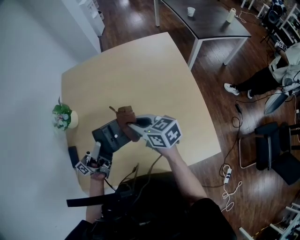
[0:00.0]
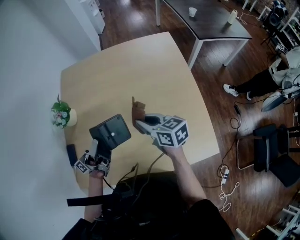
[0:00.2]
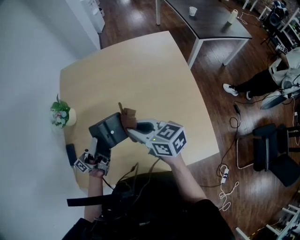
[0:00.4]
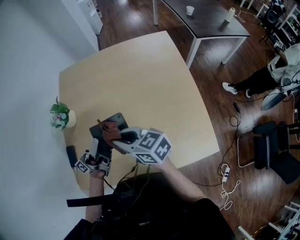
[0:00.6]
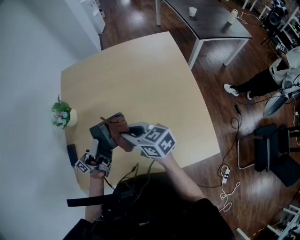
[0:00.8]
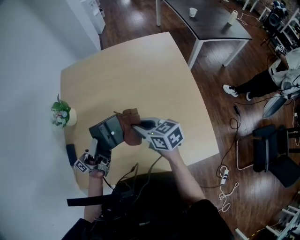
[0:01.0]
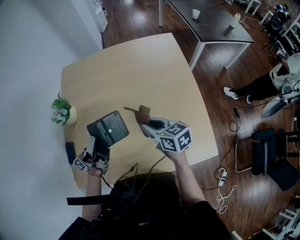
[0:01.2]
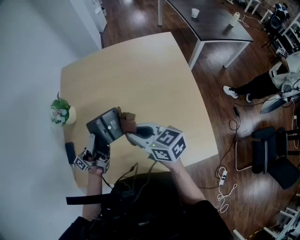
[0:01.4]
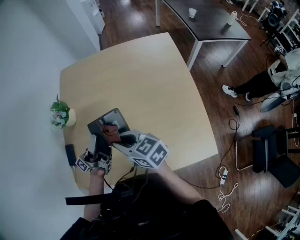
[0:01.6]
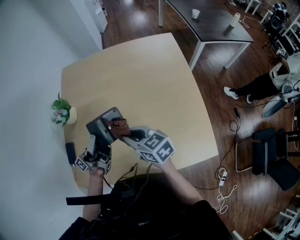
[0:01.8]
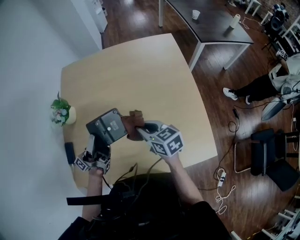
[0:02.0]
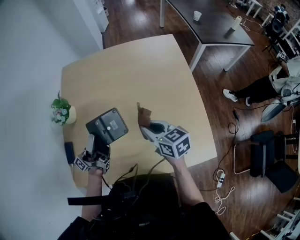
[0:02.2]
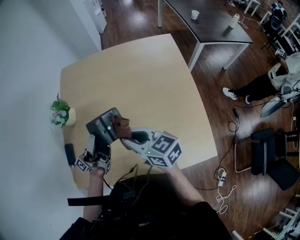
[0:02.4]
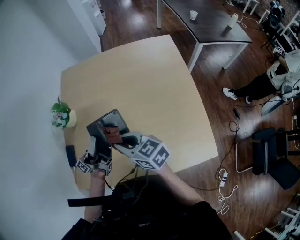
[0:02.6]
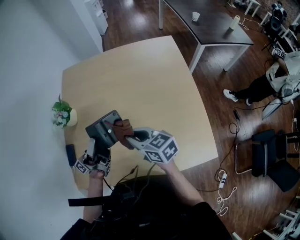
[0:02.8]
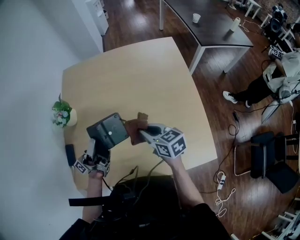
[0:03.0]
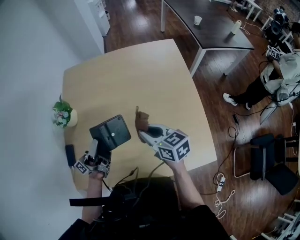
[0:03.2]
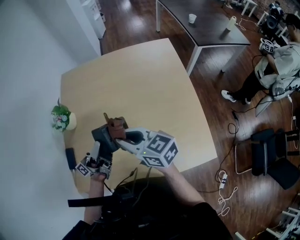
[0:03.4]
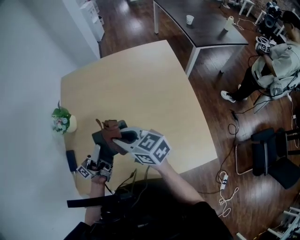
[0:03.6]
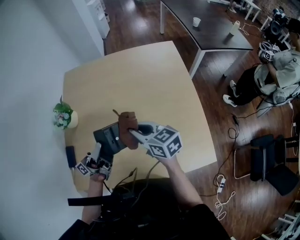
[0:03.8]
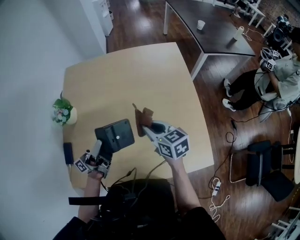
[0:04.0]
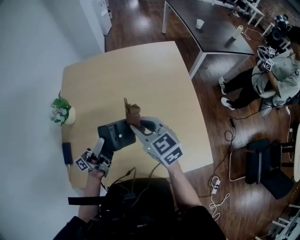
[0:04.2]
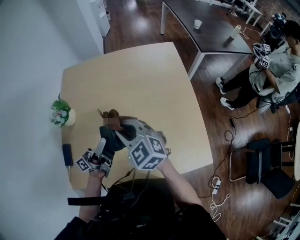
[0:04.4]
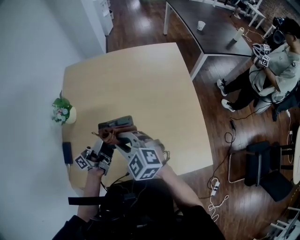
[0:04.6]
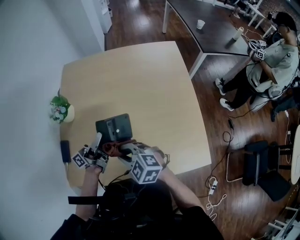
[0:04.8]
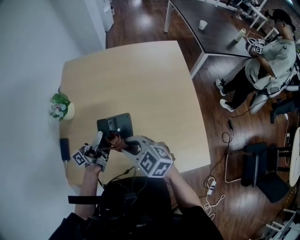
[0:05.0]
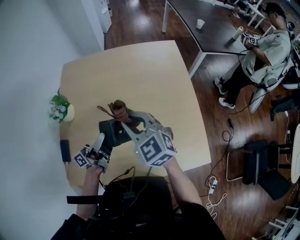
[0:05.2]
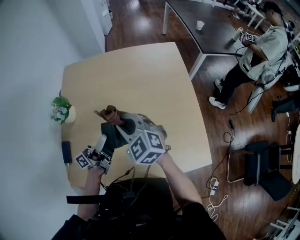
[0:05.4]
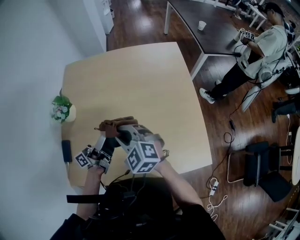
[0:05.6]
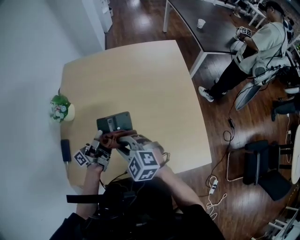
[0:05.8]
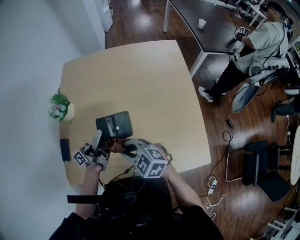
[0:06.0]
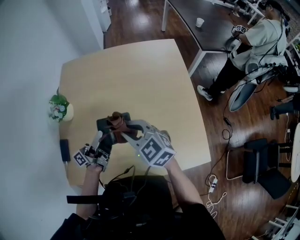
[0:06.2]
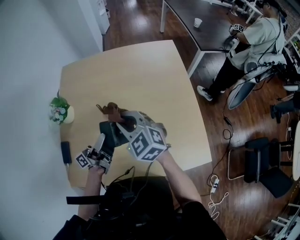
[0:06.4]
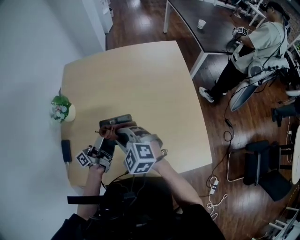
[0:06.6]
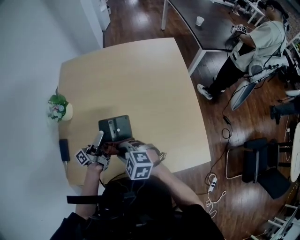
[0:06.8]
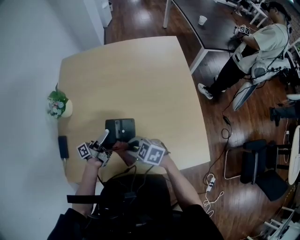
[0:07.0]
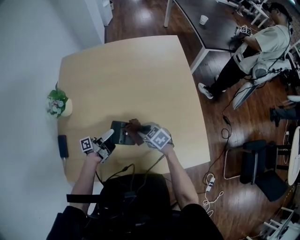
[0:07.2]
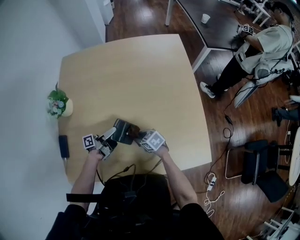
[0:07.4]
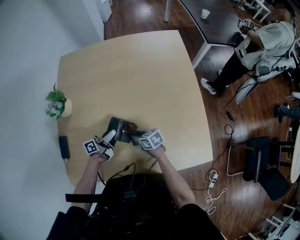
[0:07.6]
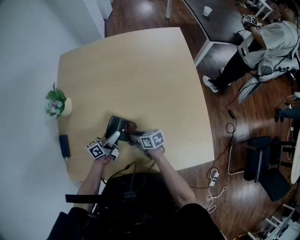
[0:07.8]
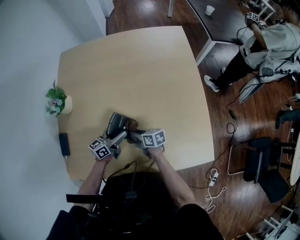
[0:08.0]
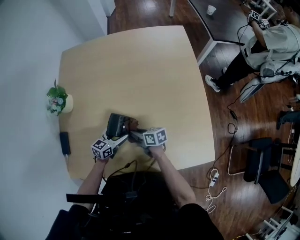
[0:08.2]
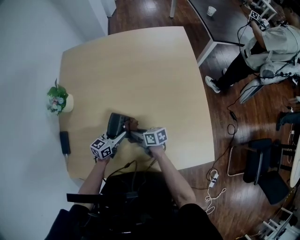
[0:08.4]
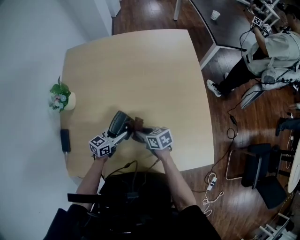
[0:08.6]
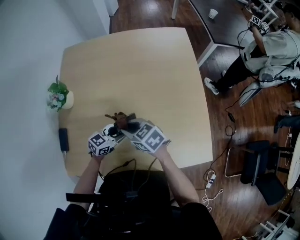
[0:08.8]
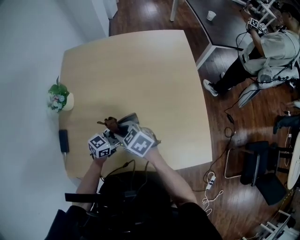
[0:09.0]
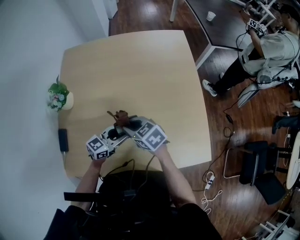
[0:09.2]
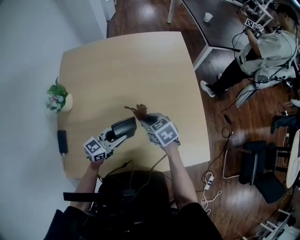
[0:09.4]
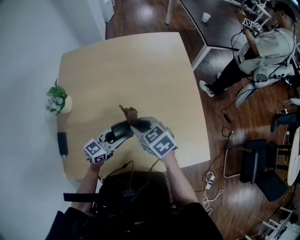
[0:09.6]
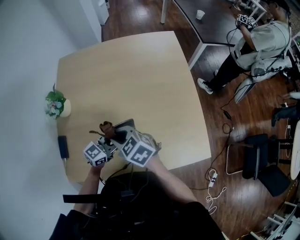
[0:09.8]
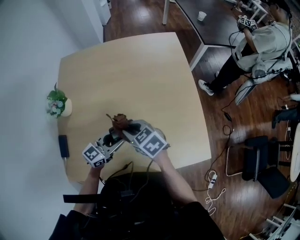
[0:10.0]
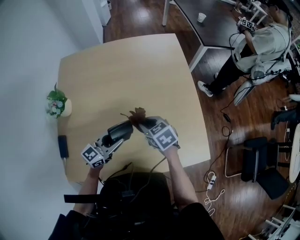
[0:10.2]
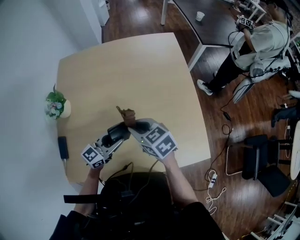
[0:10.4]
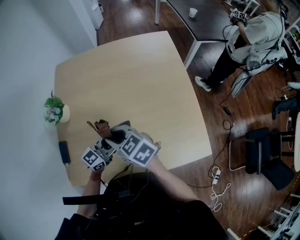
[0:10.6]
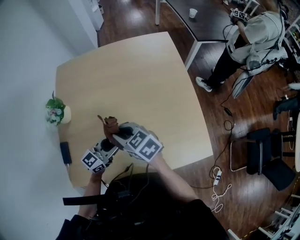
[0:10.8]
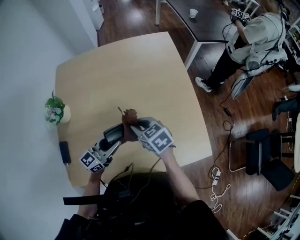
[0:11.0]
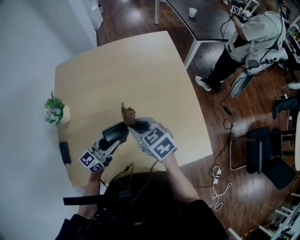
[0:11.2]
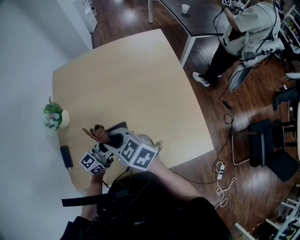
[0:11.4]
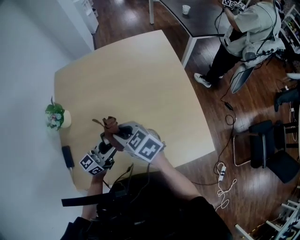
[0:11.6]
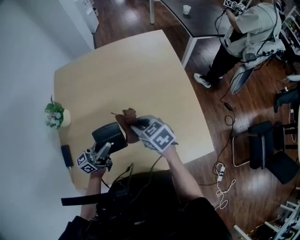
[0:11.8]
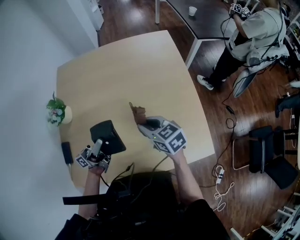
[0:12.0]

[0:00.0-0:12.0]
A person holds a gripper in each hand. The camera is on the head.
0:00.0 to 0:01.6: The right gripper goes left and right, about 10 cm each way, reversing 2 times.
0:01.6 to 0:03.0: The right gripper goes left and right, roughly 10 cm each way, reversing 2 times.
0:03.0 to 0:04.4: The right gripper goes left and right, approximately 10 cm each way, reversing 2 times, and rotates around the line of its fingers by some 40 degrees, counterclockwise from behind, while the left gripper changes place by approximately 5 cm.
0:04.4 to 0:06.0: The right gripper goes forward and backward, about 10 cm each way, reversing 2 times, and swivels about 20 degrees.
0:06.0 to 0:07.6: Both grippers move downward, some 20 cm. The right gripper rotates around the line of its fingers by about 50 degrees, clockwise from behind; the left gripper changes its angle by about 30 degrees, and opens.
0:07.6 to 0:09.0: The left gripper moves roughly 5 cm downward and comes back, rolls clockwise, seen from behind, by approximately 50 degrees, and closes up, while the right gripper goes approximately 20 cm upward, and turns by about 30 degrees.
0:09.0 to 0:10.4: The right gripper swings up and down, about 10 cm each way, with 2 reversals, while the left gripper shifts about 5 cm upward.
0:10.4 to 0:12.0: The right gripper goes left and right, about 15 cm each way, reversing 3 times. Meanwhile the left gripper is displaced upward and to the left by roughly 10 cm, and angles its fingers upward, by some 40 degrees.

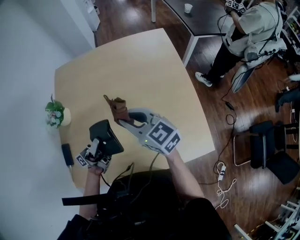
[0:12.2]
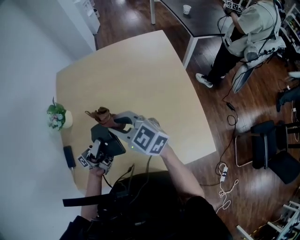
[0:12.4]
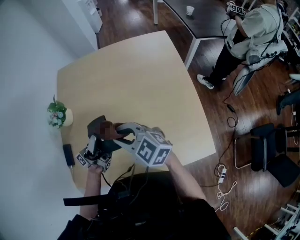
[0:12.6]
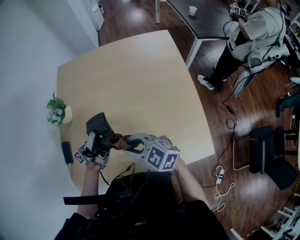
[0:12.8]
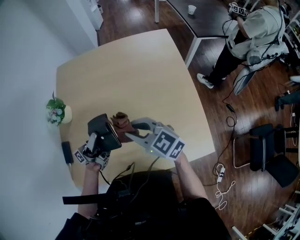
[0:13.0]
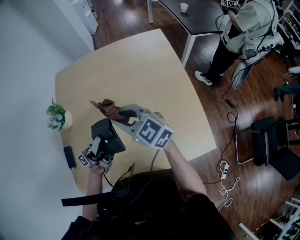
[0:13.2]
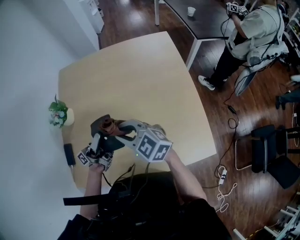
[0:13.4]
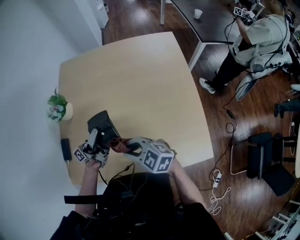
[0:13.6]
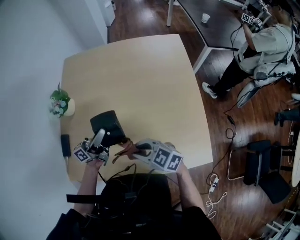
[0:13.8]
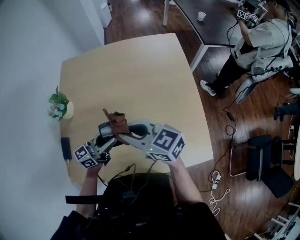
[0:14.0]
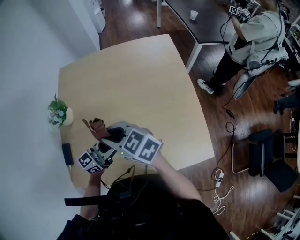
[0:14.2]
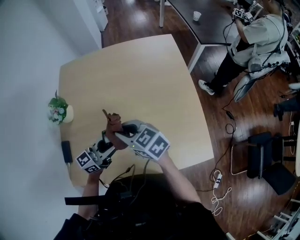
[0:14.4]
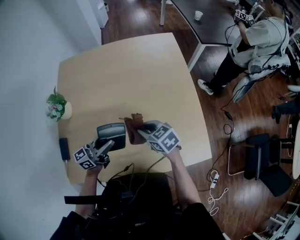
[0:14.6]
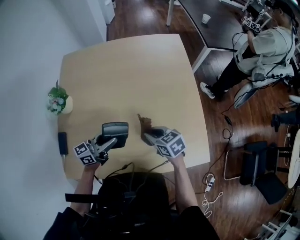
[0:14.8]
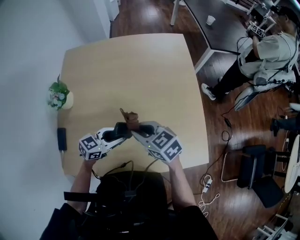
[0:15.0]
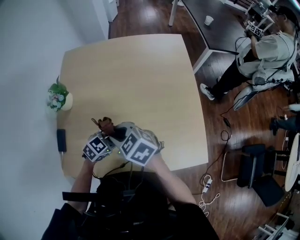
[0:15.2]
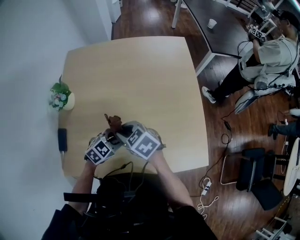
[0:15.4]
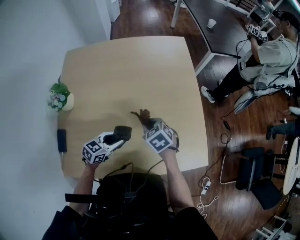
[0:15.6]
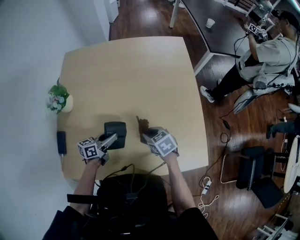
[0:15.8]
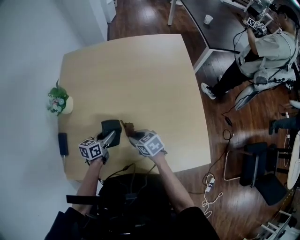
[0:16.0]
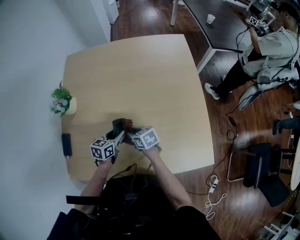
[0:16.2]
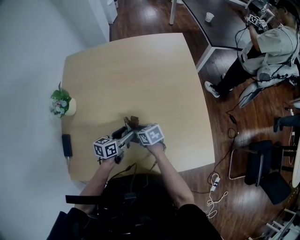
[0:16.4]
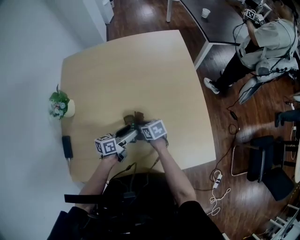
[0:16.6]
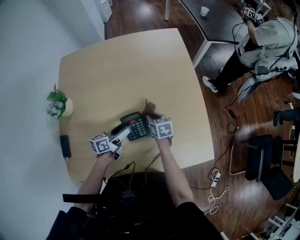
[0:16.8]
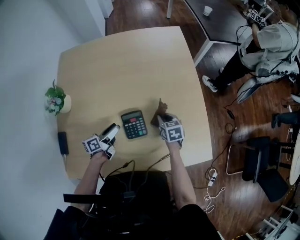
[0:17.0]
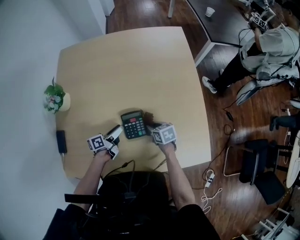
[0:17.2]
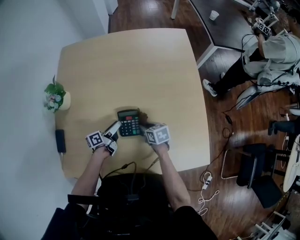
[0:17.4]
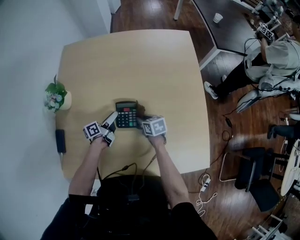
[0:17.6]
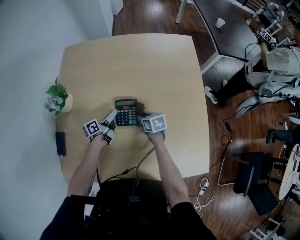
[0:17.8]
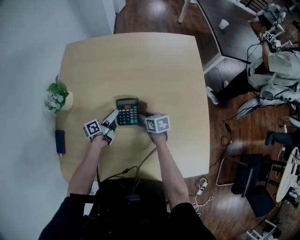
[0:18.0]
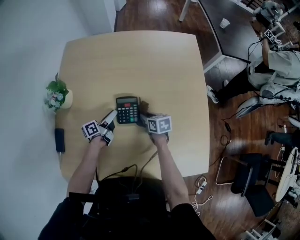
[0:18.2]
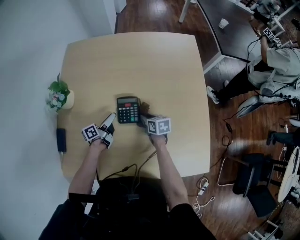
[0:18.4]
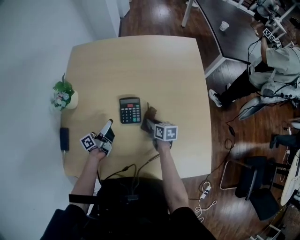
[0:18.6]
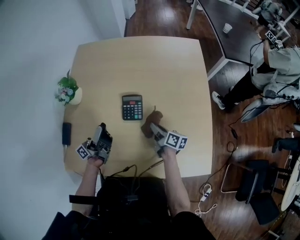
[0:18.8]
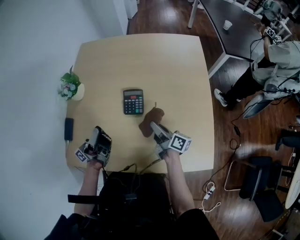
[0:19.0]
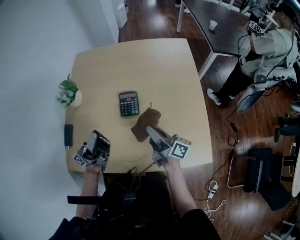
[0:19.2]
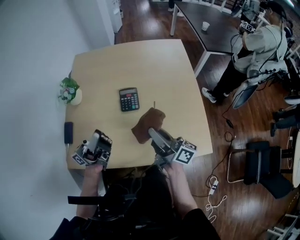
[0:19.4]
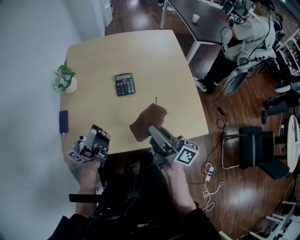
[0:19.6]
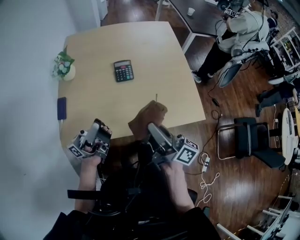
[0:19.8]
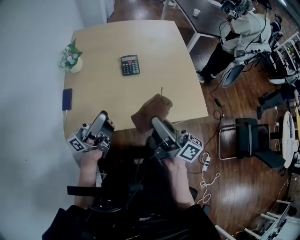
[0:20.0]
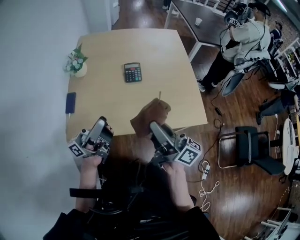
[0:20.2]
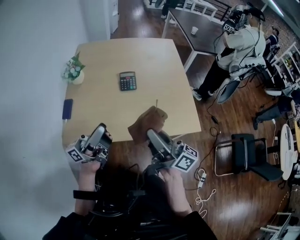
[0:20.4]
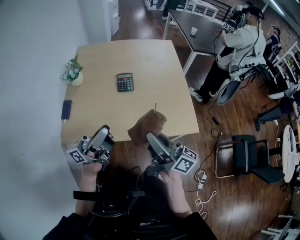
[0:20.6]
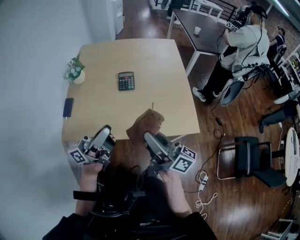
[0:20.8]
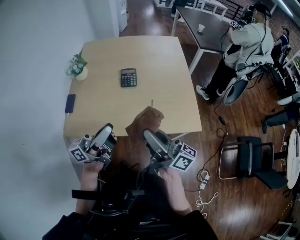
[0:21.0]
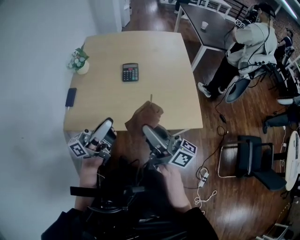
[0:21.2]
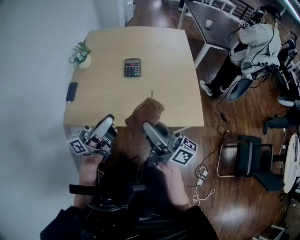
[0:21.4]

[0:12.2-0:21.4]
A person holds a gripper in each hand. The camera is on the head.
0:12.2 to 0:13.8: The left gripper rotates approximately 20 degrees. The right gripper goes forward and backward, approximately 15 cm each way, reversing 2 times, and swivels about 30 degrees.
0:13.8 to 0:15.2: The right gripper swings up and down, roughly 20 cm each way, with 2 reversals; the left gripper moves approximately 15 cm, and tips its fingers downward by approximately 60 degrees.
0:15.2 to 0:16.8: The right gripper travels downward by some 20 cm, and changes its angle by roughly 50 degrees. The left gripper rolls counterclockwise, seen from behind, by some 50 degrees, and opens.
0:16.8 to 0:18.4: The left gripper is displaced to the left, forward and downward by about 15 cm, and changes its angle by about 30 degrees. The right gripper heads to the left, covering about 5 cm.
0:18.4 to 0:19.8: The two grippers go approximately 50 cm backward and upward. The left gripper tilts its fingers some 60 degrees upward, and closes its fingers; the right gripper tips its fingers upward by approximately 60 degrees.
0:19.8 to 0:21.4: The right gripper moves backward, some 5 cm, while the left gripper moves to the right and backward, approximately 10 cm.

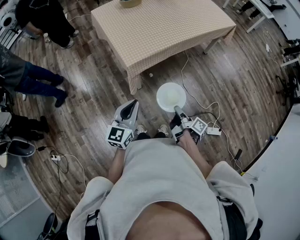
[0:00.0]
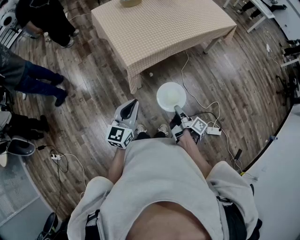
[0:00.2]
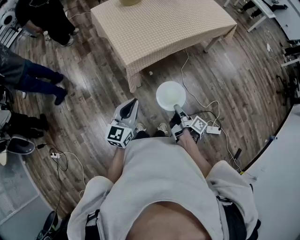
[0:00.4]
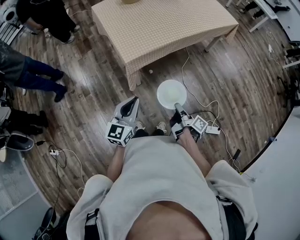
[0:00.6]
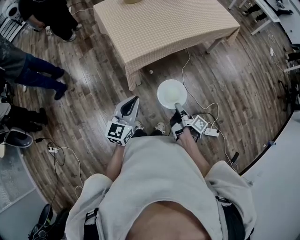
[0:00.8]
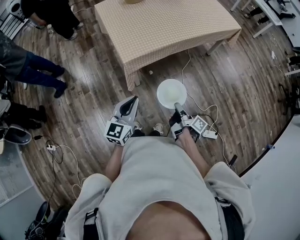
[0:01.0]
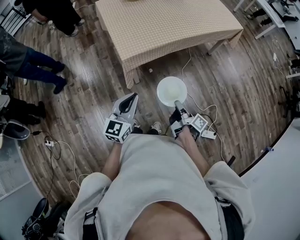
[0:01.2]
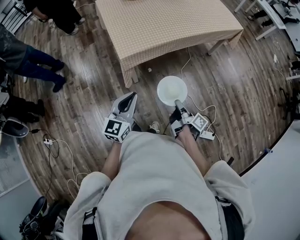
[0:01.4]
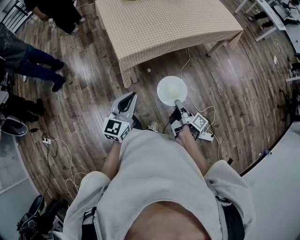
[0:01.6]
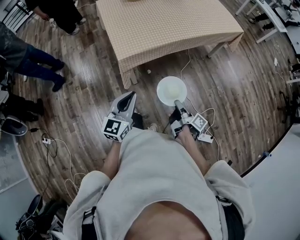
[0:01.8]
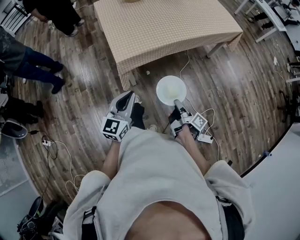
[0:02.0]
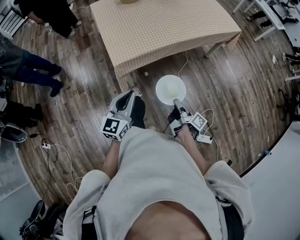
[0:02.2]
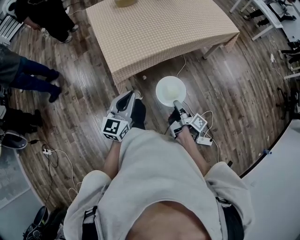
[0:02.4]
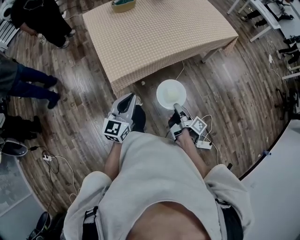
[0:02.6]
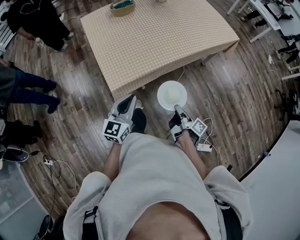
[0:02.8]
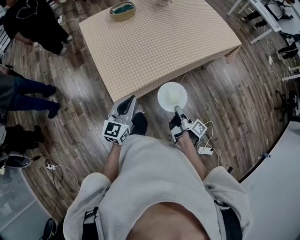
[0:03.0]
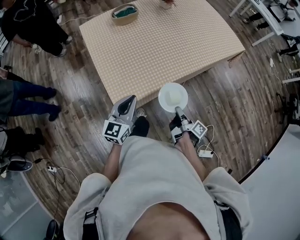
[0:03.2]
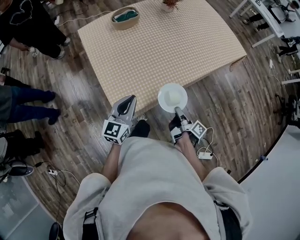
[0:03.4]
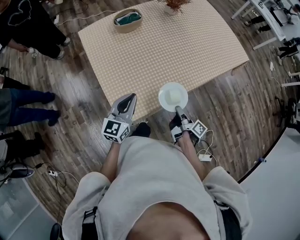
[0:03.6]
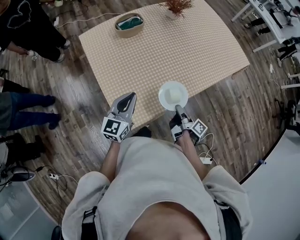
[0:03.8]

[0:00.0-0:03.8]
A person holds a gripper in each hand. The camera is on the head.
0:00.0 to 0:01.2: The left gripper changes place by about 5 cm.
0:01.2 to 0:02.6: The left gripper moves approximately 15 cm.
0:02.6 to 0:03.8: The left gripper changes place by about 35 cm.
